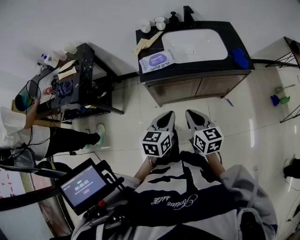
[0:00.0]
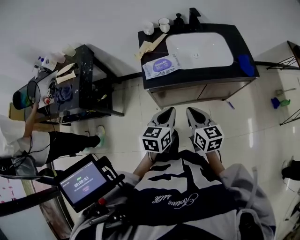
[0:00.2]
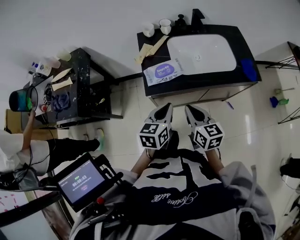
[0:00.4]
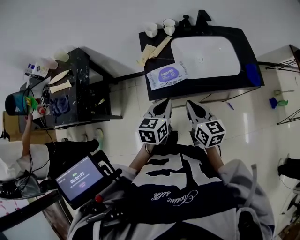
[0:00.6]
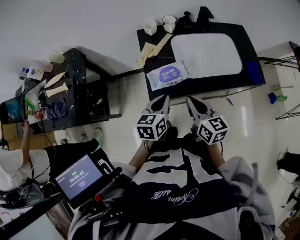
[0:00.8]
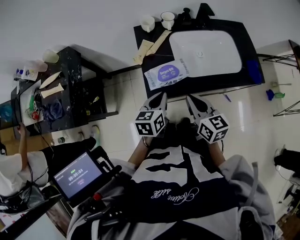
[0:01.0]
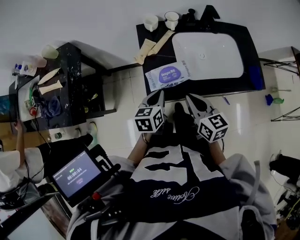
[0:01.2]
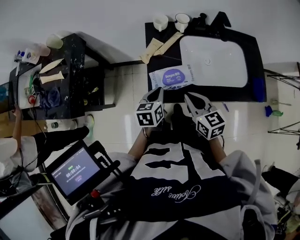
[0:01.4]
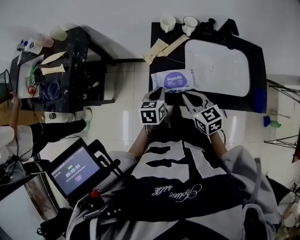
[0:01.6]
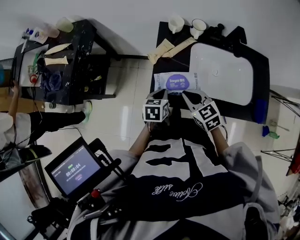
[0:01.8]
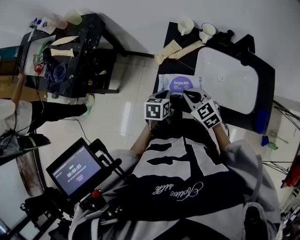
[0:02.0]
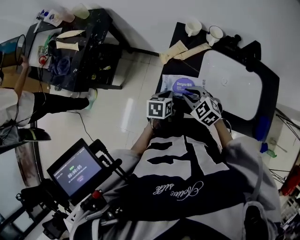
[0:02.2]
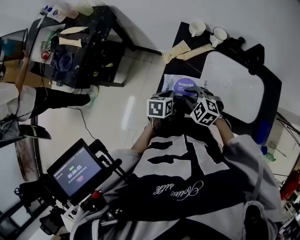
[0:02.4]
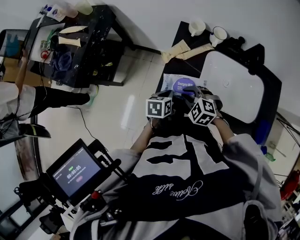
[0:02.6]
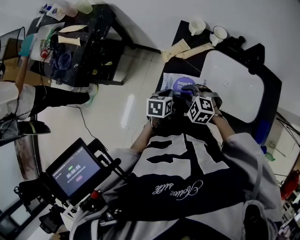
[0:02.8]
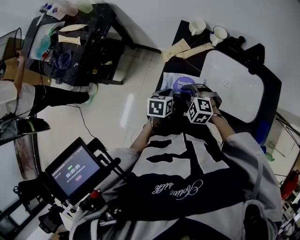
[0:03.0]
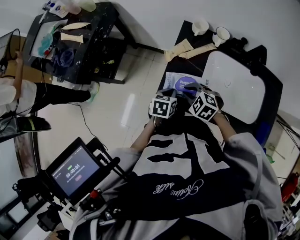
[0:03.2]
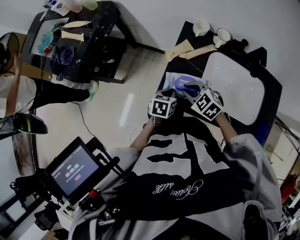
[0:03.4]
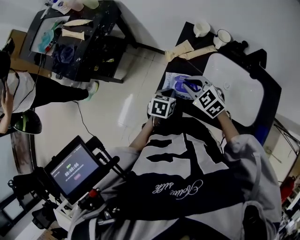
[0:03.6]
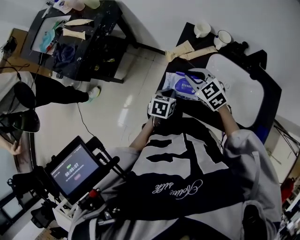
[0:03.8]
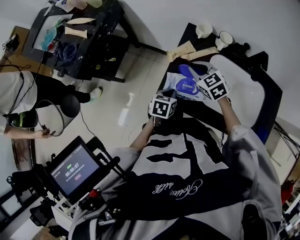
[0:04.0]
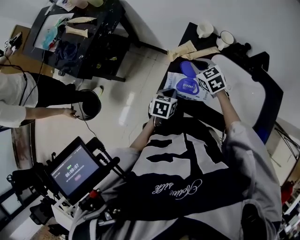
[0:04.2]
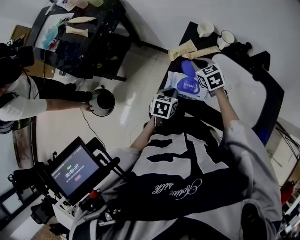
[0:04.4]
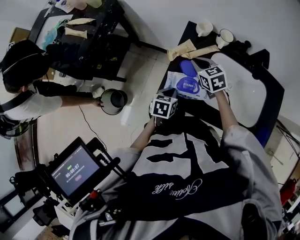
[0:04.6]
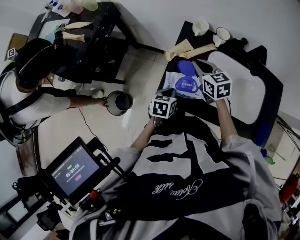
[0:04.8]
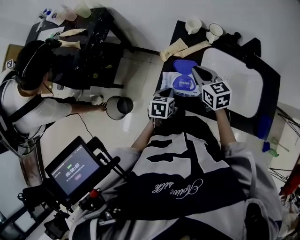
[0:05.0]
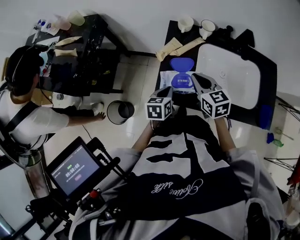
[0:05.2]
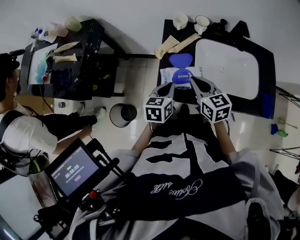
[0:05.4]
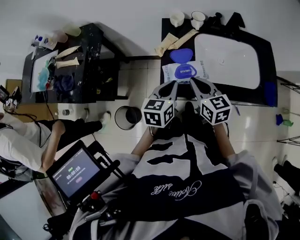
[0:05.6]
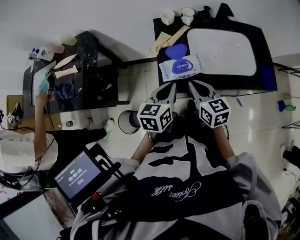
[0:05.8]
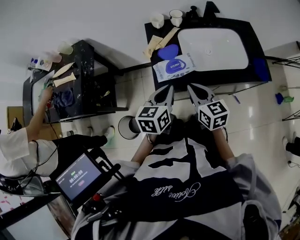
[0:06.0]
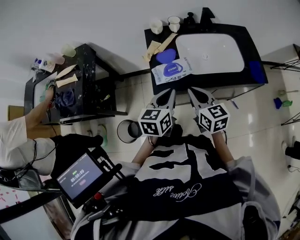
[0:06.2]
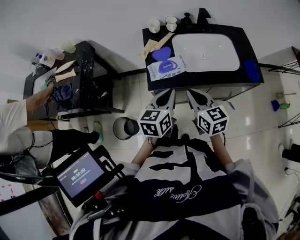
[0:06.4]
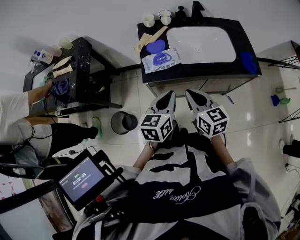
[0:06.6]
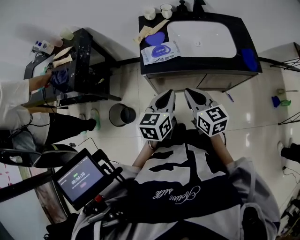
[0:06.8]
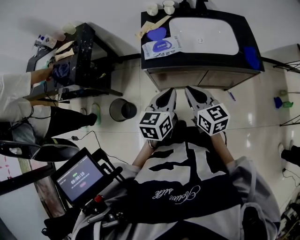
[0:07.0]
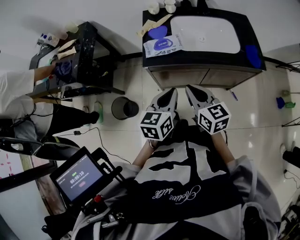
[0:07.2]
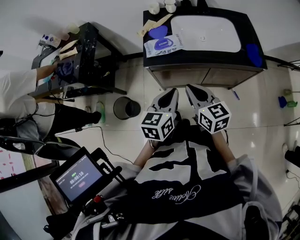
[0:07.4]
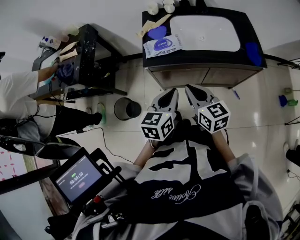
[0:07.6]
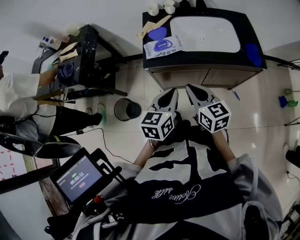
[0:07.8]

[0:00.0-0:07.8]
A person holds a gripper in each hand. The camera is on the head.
0.0 to 1.6 s: Both grippers move forward, roughly 30 cm. The left gripper swivels about 20 degrees, while the right gripper swivels approximately 30 degrees.
1.6 to 3.2 s: The right gripper heads downward, covering about 10 cm, and rotates around the line of its fingers by about 50 degrees, counterclockwise from behind.
3.2 to 4.6 s: The right gripper shifts approximately 15 cm forward, and rotates about 40 degrees.
4.6 to 6.2 s: The left gripper travels upward and backward by roughly 20 cm, and rotates roughly 30 degrees; the right gripper shifts some 30 cm backward and upward, and rotates approximately 40 degrees.
6.2 to 7.8 s: Both grippers move backward and to the right, roughly 15 cm.

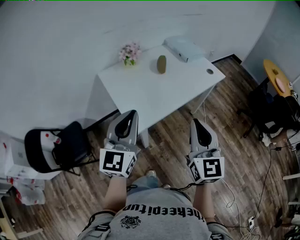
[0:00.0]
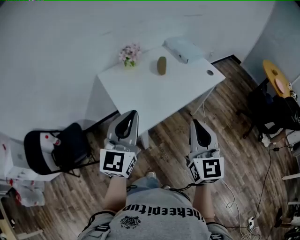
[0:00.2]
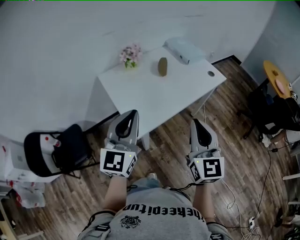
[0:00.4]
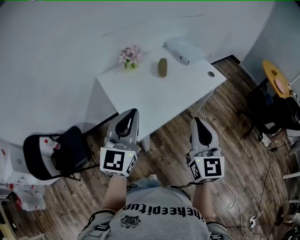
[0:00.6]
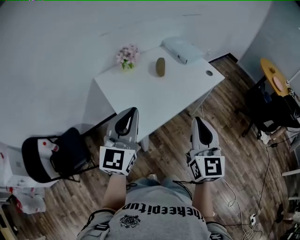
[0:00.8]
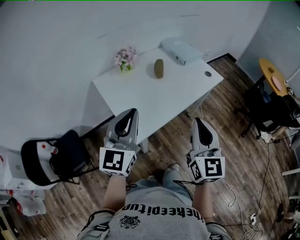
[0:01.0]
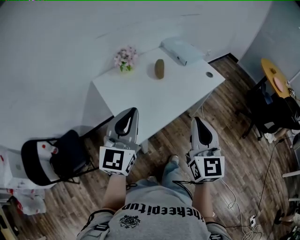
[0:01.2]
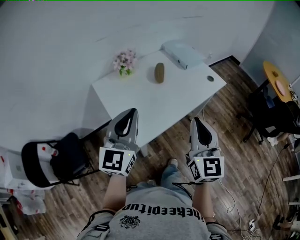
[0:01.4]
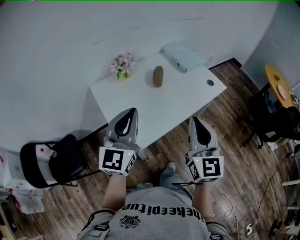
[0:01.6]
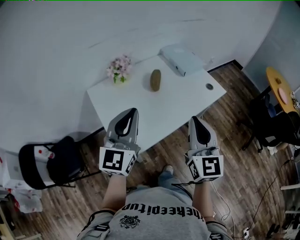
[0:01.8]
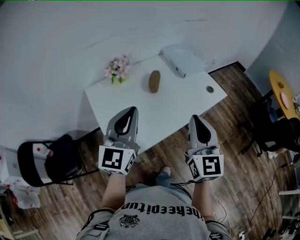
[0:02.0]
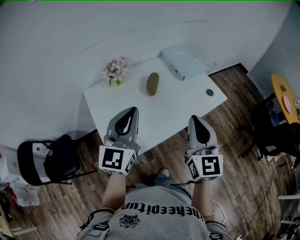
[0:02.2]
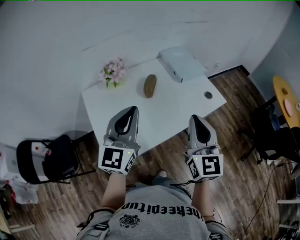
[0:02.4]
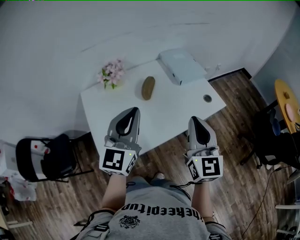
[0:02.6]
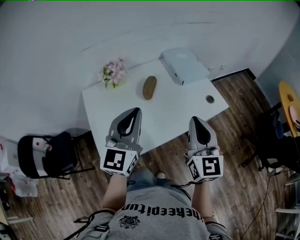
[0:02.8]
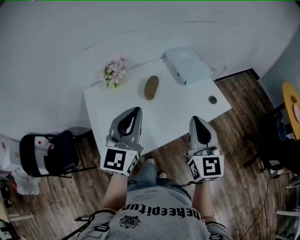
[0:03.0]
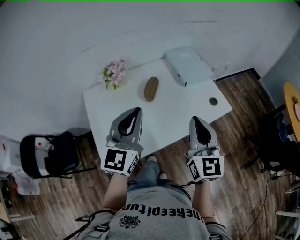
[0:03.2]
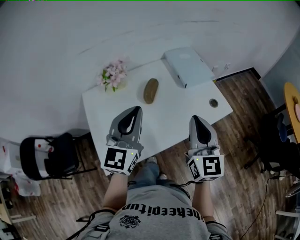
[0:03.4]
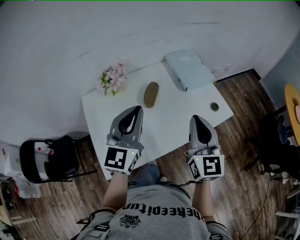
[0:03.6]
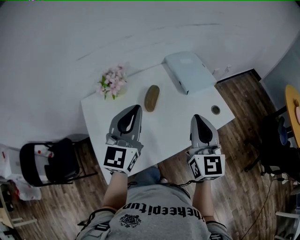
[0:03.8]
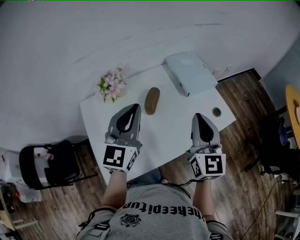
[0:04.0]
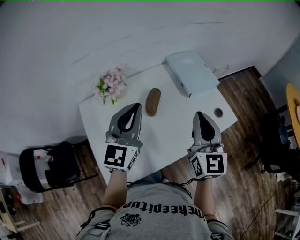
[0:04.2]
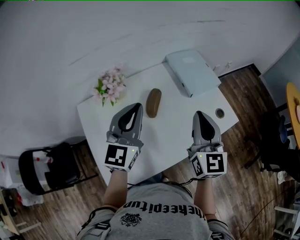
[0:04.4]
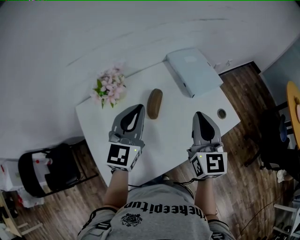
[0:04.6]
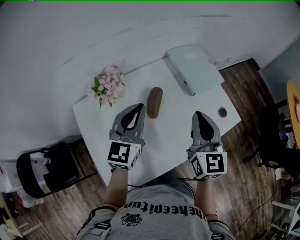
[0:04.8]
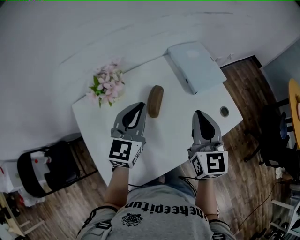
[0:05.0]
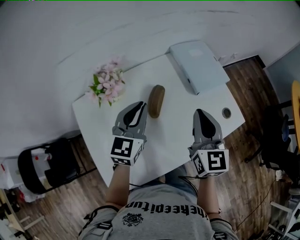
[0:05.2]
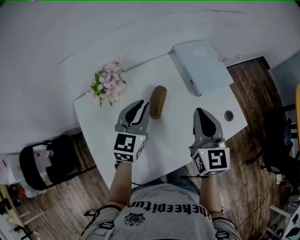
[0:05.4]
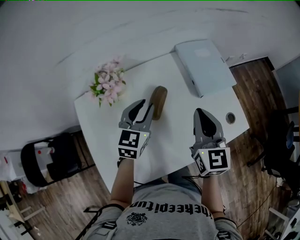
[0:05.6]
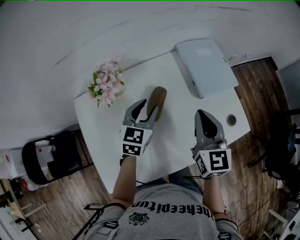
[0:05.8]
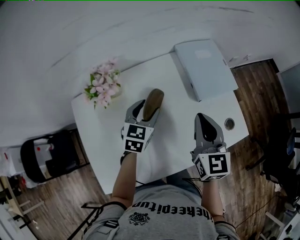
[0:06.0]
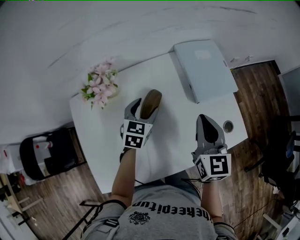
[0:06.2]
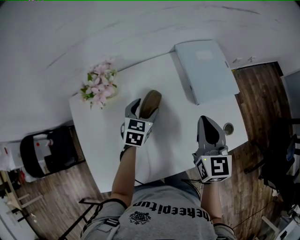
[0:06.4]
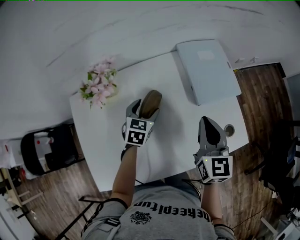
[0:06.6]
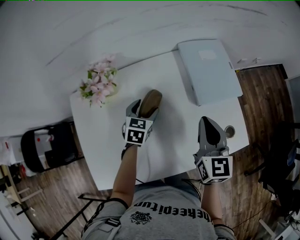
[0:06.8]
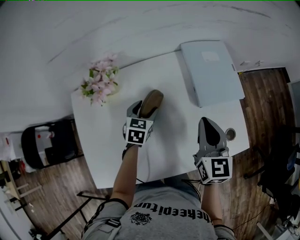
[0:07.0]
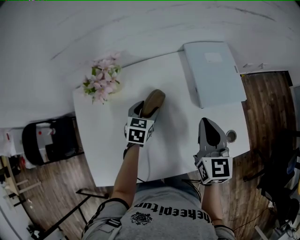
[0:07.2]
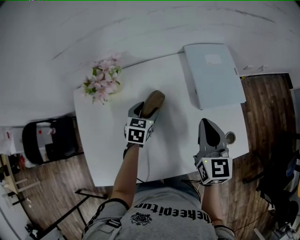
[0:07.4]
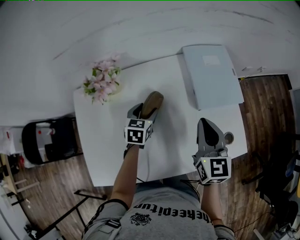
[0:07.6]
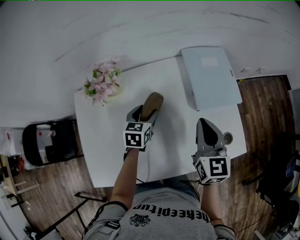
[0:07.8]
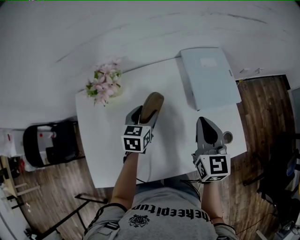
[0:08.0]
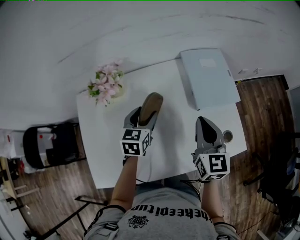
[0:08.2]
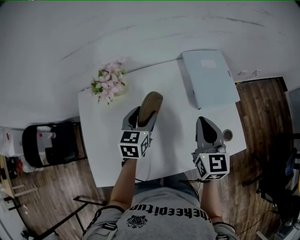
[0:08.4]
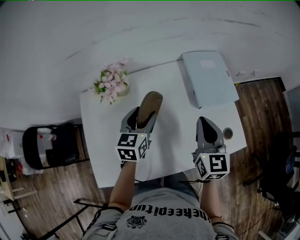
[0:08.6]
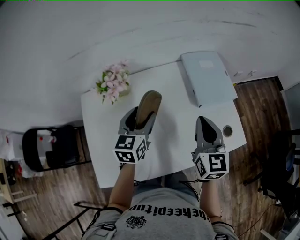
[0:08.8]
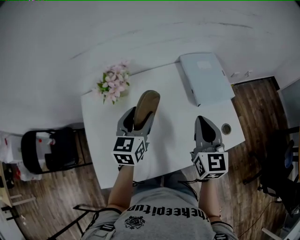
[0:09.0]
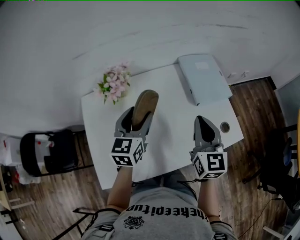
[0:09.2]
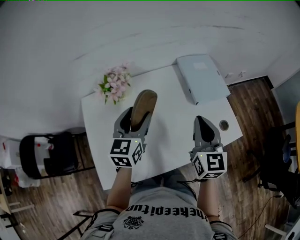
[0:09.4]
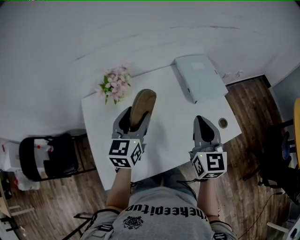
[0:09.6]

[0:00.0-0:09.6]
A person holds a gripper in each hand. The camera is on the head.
0.0 to 1.6 s: The grippers both shift forward by about 10 cm.
1.6 to 3.2 s: Both grippers move forward and to the right, about 20 cm.
3.2 to 4.8 s: The grippers both shift forward by about 15 cm.
4.8 to 6.4 s: The left gripper is displaced downward and forward by roughly 25 cm, points its fingers some 30 degrees further downward, and opens its fingers; the right gripper is displaced forward, downward and to the right by approximately 15 cm.
6.4 to 8.0 s: There are only small adjustments of the grippers.
8.0 to 9.6 s: The right gripper goes approximately 15 cm backward, upward and to the left. The left gripper goes approximately 20 cm upward, backward and to the left, and turns by roughly 20 degrees.

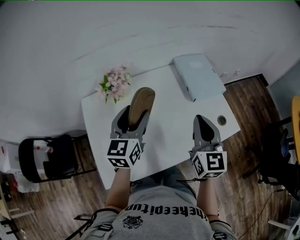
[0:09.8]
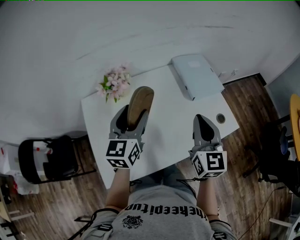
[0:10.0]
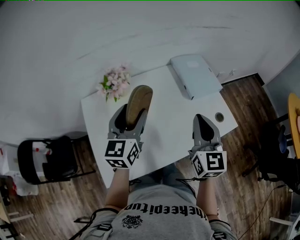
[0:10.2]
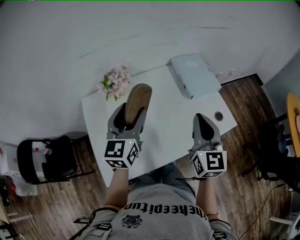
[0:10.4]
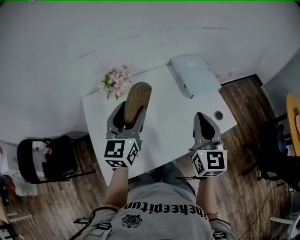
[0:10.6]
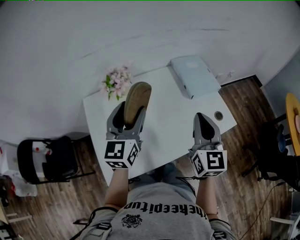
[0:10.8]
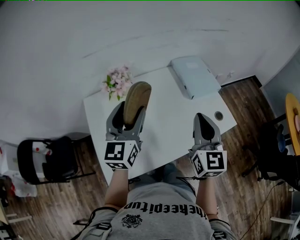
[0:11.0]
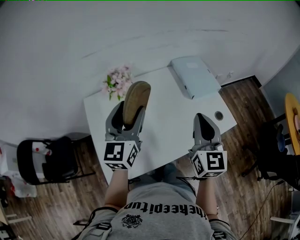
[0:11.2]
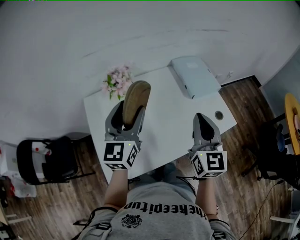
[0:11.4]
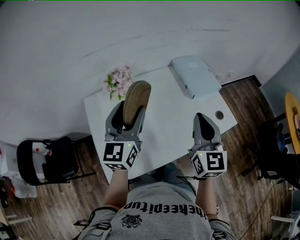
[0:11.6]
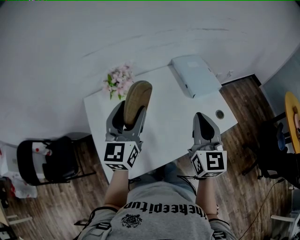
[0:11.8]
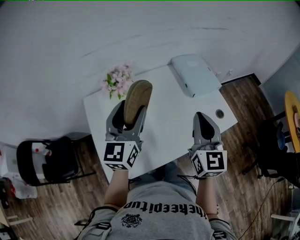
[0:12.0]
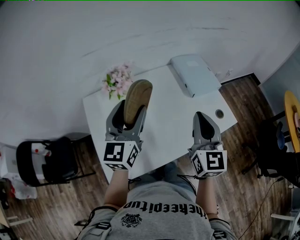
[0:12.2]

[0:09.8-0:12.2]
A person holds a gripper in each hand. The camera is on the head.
9.8 to 11.0 s: The left gripper is displaced upward and backward by roughly 5 cm, while the right gripper heads backward, covering about 5 cm.
11.0 to 12.2 s: The grippers make only small movements.

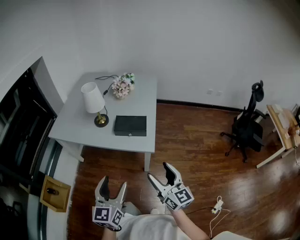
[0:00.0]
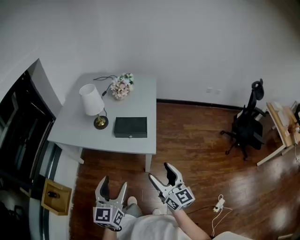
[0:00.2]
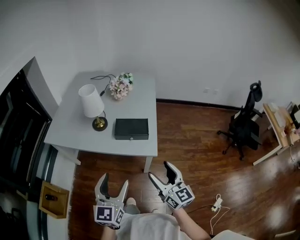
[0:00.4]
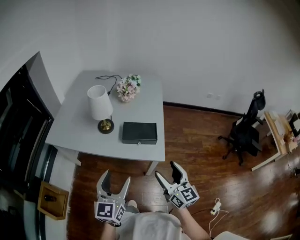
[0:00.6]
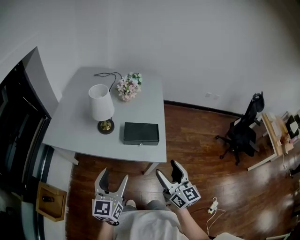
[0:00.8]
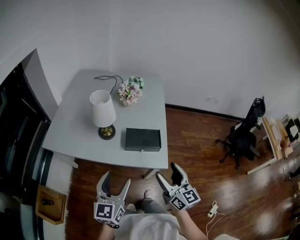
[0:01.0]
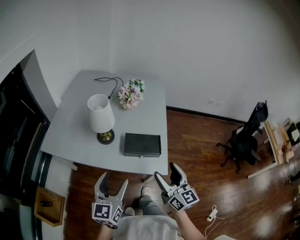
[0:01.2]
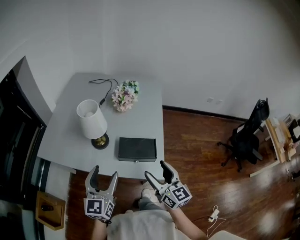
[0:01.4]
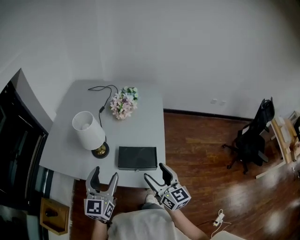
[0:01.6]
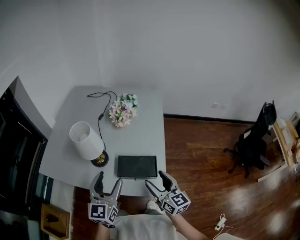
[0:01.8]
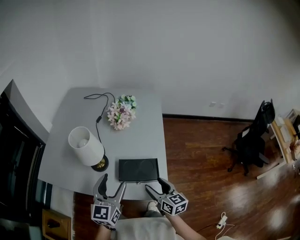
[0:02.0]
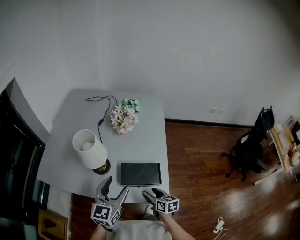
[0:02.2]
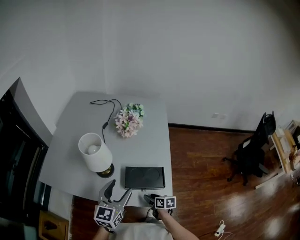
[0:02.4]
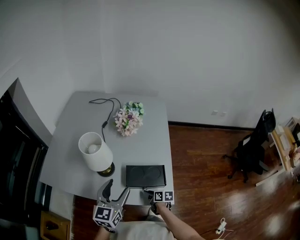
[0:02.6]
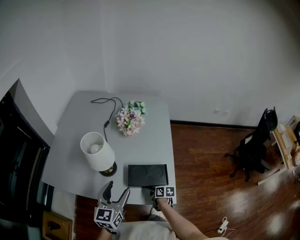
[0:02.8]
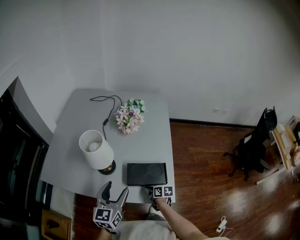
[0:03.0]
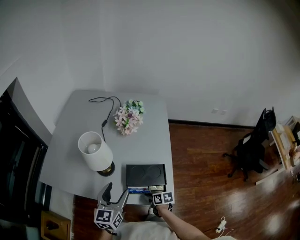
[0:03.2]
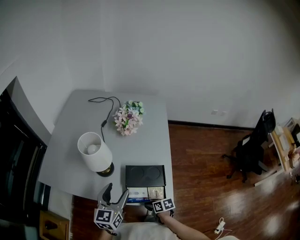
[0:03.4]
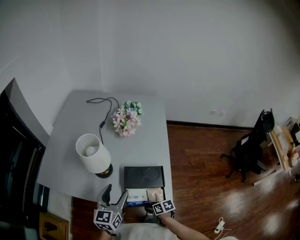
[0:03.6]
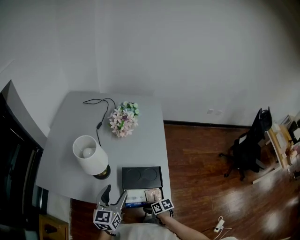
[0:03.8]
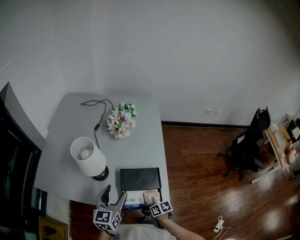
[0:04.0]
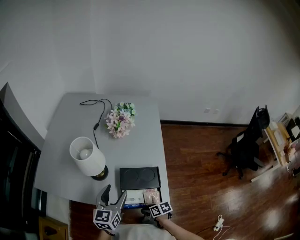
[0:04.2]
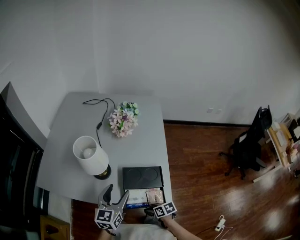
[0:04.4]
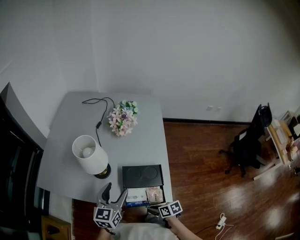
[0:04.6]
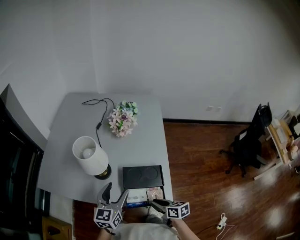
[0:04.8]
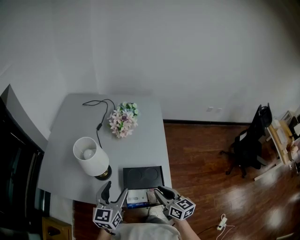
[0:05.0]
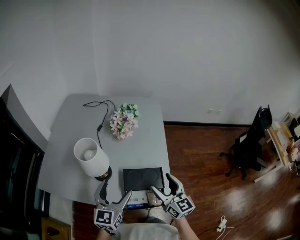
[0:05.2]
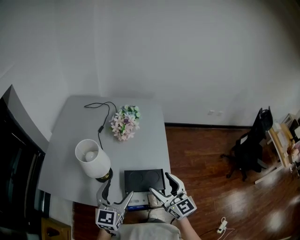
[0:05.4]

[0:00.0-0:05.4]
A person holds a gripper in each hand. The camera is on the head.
0.0 to 1.4 s: Both grippers move forward, some 25 cm.
1.4 to 2.8 s: The left gripper goes about 10 cm forward; the right gripper heads downward, covering some 30 cm, tips its fingers downward by approximately 40 degrees, and closes its fingers.
2.8 to 4.0 s: The right gripper travels backward and to the left by roughly 15 cm, and swivels roughly 20 degrees.
4.0 to 5.4 s: The right gripper goes about 35 cm upward, angles its fingers upward, by some 50 degrees, and opens its fingers, while the left gripper shifts about 5 cm upward.
